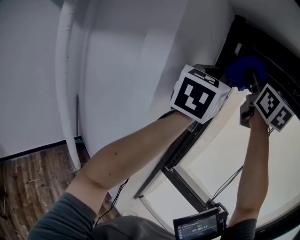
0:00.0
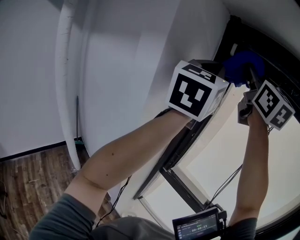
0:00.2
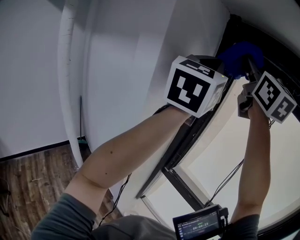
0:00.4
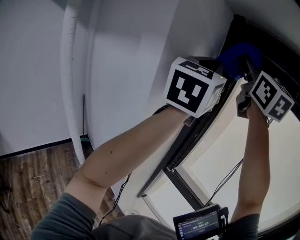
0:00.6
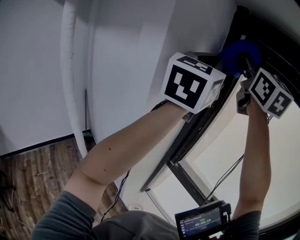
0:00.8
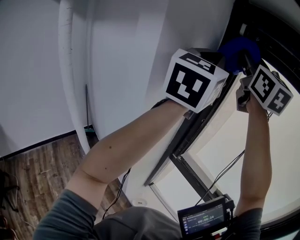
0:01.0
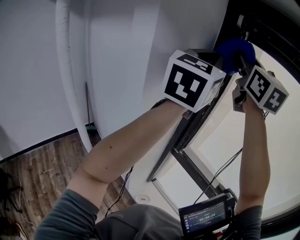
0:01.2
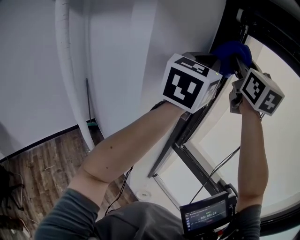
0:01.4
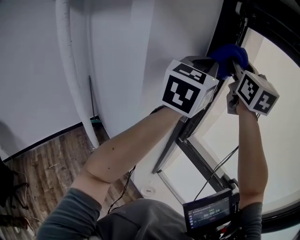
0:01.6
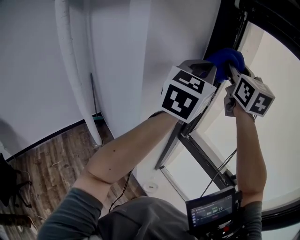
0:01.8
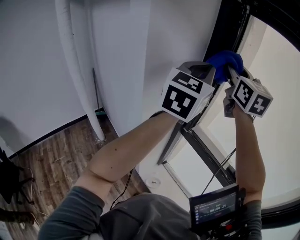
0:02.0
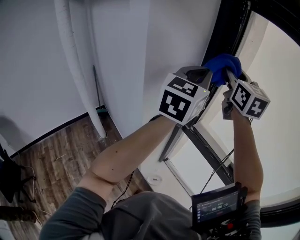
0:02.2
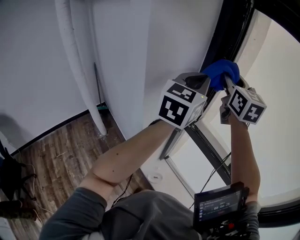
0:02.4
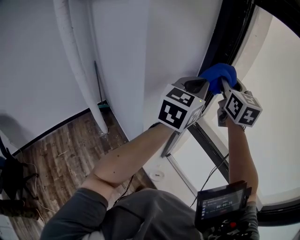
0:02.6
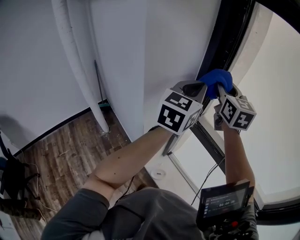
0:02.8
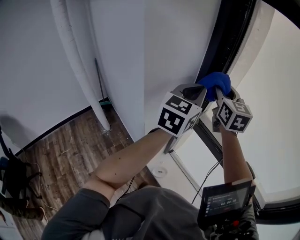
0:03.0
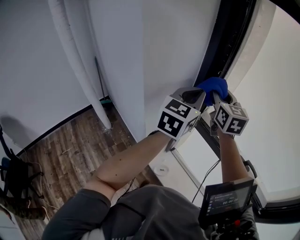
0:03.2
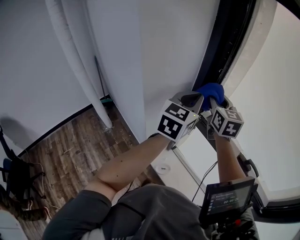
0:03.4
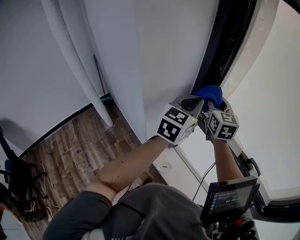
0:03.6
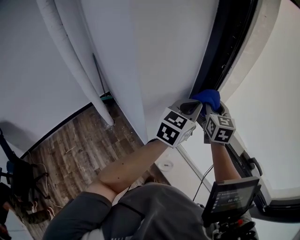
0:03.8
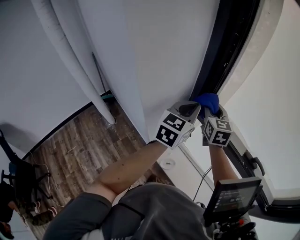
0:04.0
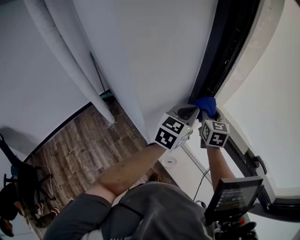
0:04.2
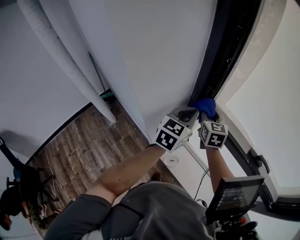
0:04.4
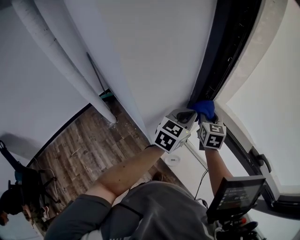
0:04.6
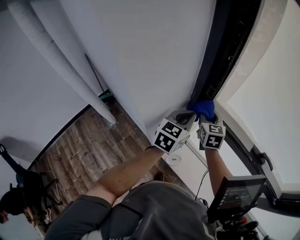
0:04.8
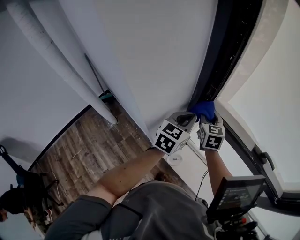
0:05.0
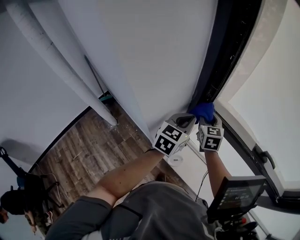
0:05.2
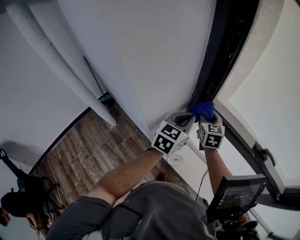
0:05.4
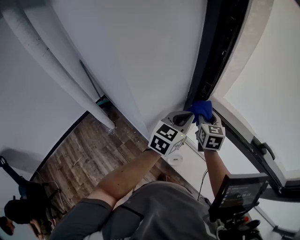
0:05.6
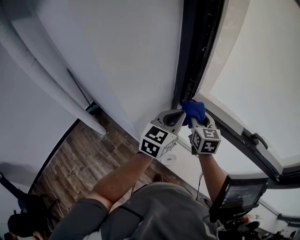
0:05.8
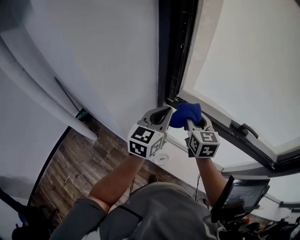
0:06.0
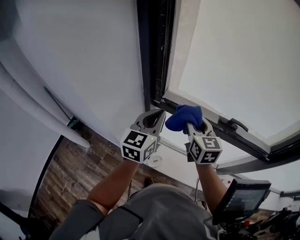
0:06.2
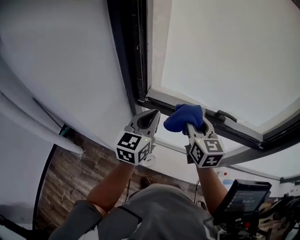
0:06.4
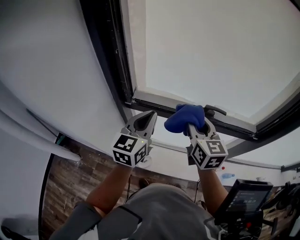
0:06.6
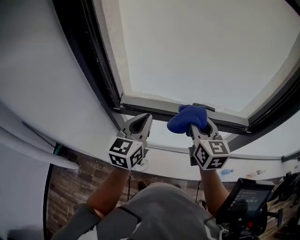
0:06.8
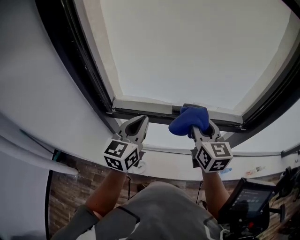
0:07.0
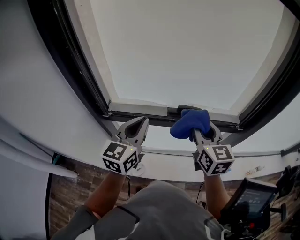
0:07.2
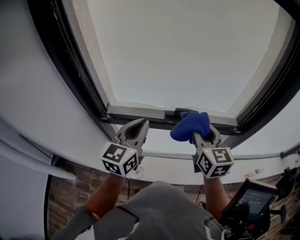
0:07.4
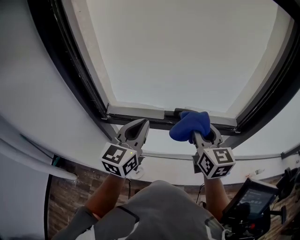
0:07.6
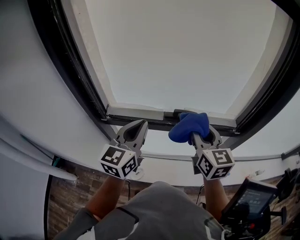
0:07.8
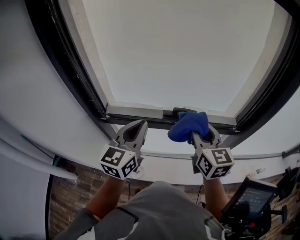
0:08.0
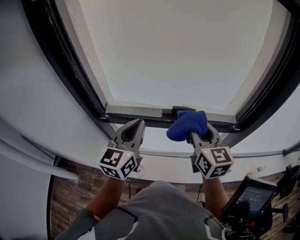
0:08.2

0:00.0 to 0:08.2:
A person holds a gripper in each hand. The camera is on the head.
0:00.0 to 0:01.6: The two grippers go about 10 cm downward.
0:01.6 to 0:03.2: Both grippers move downward, some 25 cm. The right gripper changes its angle by some 20 degrees.
0:03.2 to 0:05.0: Both grippers travel together downward, some 25 cm. The right gripper changes its angle by about 20 degrees.
0:05.0 to 0:06.6: The left gripper is displaced to the right and upward by some 20 cm. The right gripper goes roughly 35 cm to the right, backward and upward, and turns by approximately 30 degrees.
0:06.6 to 0:08.2: The two grippers go some 15 cm to the right.

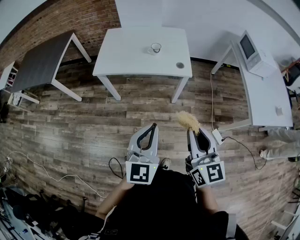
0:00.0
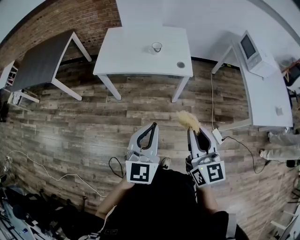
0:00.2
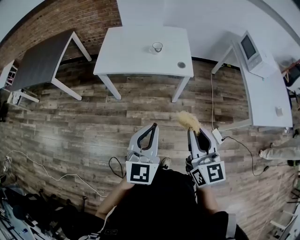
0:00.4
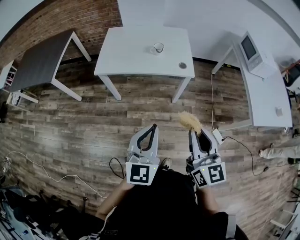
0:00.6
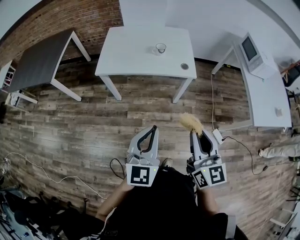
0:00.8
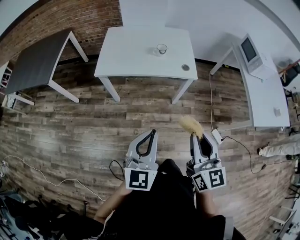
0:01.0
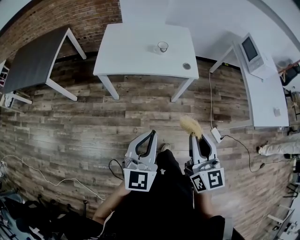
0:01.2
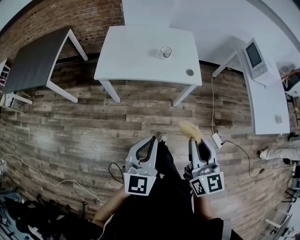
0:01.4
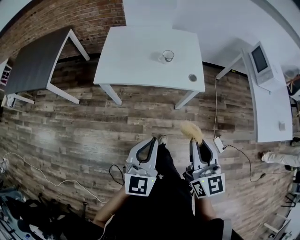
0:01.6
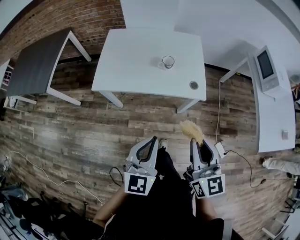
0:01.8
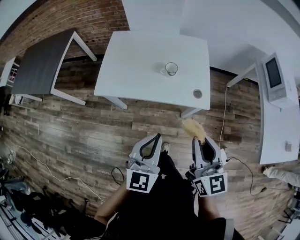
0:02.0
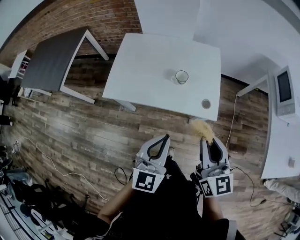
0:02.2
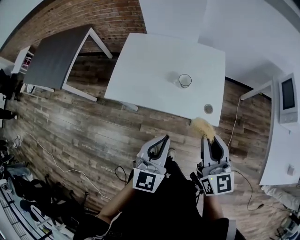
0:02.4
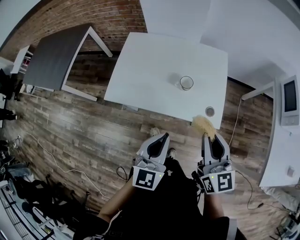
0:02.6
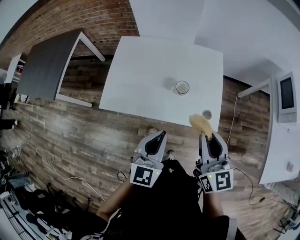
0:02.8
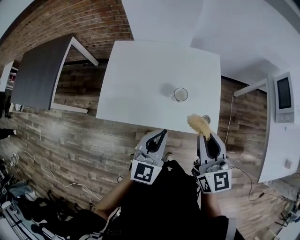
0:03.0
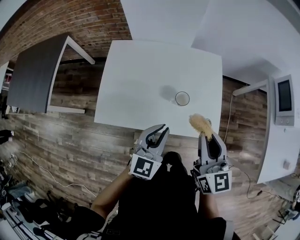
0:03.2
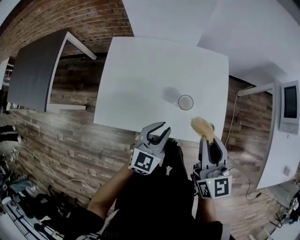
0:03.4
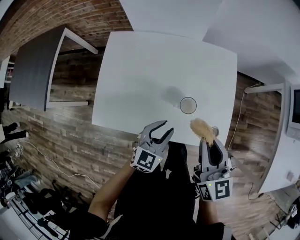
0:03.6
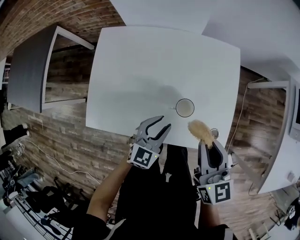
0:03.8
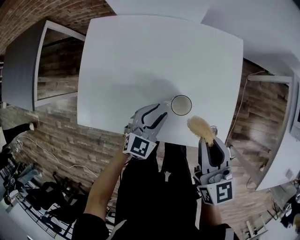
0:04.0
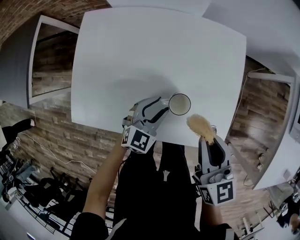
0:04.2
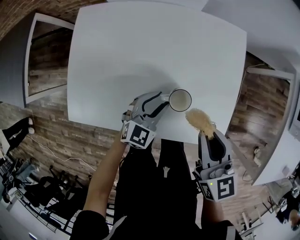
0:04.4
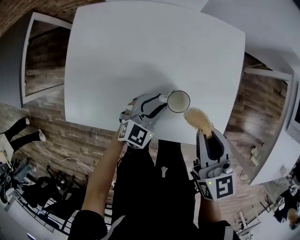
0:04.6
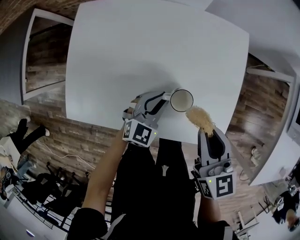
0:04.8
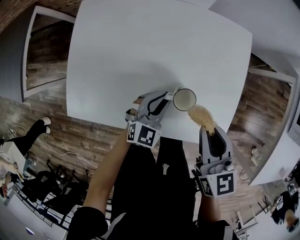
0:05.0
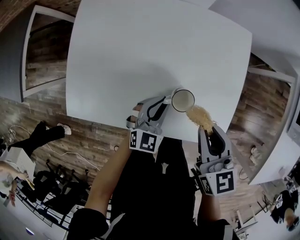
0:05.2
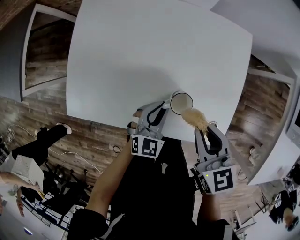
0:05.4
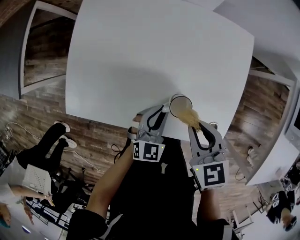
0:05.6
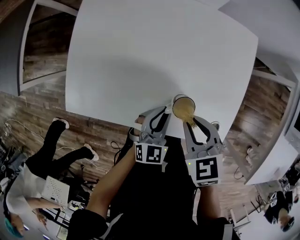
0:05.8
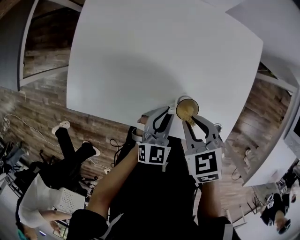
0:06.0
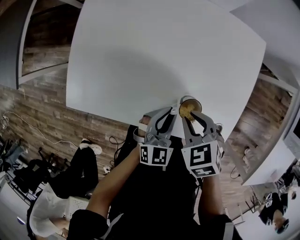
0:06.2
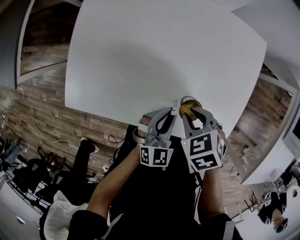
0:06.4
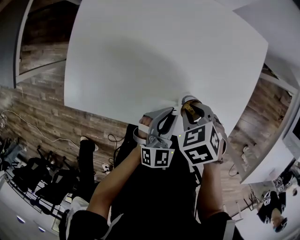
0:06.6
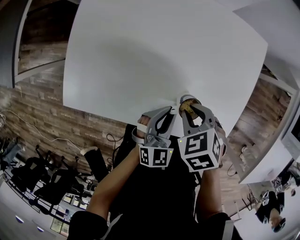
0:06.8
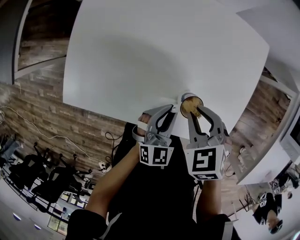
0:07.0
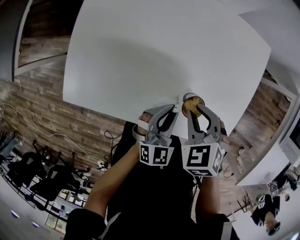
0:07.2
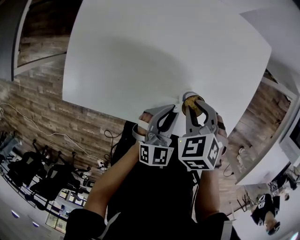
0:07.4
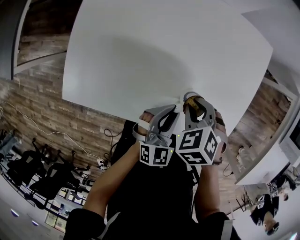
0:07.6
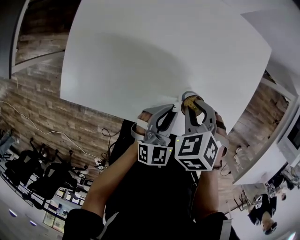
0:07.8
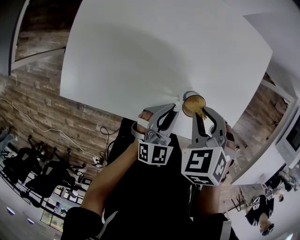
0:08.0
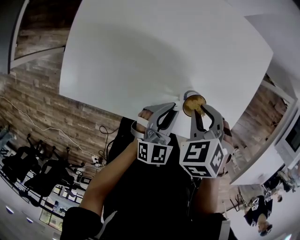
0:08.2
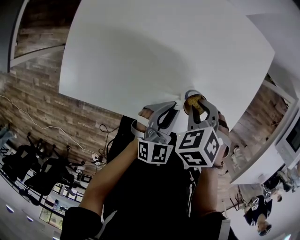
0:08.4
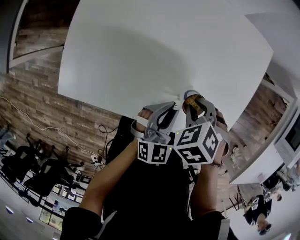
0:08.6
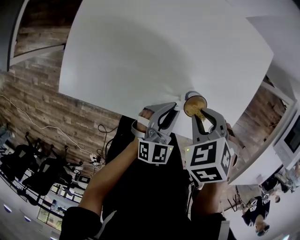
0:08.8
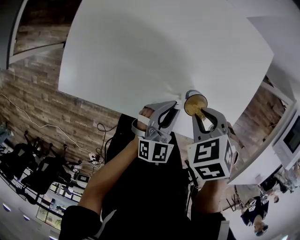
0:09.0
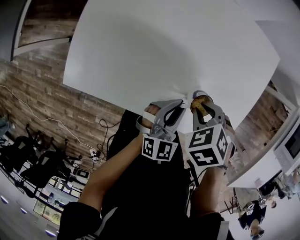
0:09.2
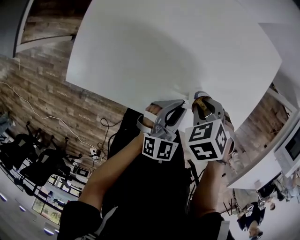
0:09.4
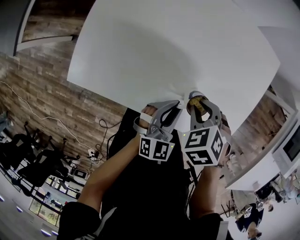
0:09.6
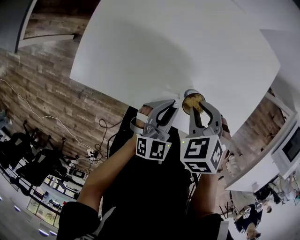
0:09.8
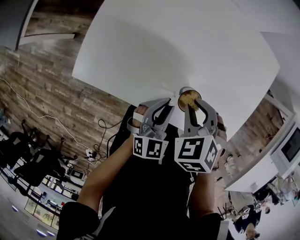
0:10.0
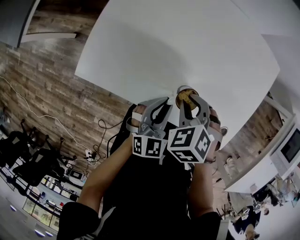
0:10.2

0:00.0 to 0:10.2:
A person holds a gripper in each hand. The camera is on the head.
0:00.0 to 0:01.4: The left gripper travels to the left by some 10 cm. Meanwhile the right gripper shifts some 10 cm to the left and forward.
0:01.4 to 0:03.0: Both grippers move forward, some 40 cm.
0:03.0 to 0:04.4: The two grippers go roughly 25 cm downward and forward. The left gripper turns by approximately 20 degrees, and opens.
0:04.4 to 0:05.8: The left gripper is displaced backward by roughly 5 cm, and closes its fingers. Meanwhile the right gripper goes approximately 10 cm downward and to the left, and swivels approximately 40 degrees.
0:05.8 to 0:07.2: The right gripper changes its angle by about 20 degrees.
0:08.8 to 0:10.2: The right gripper changes place by roughly 10 cm, while the left gripper ends up some 10 cm from where it was.

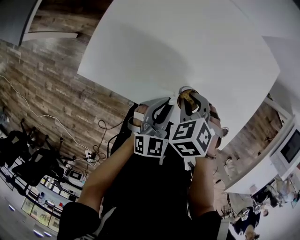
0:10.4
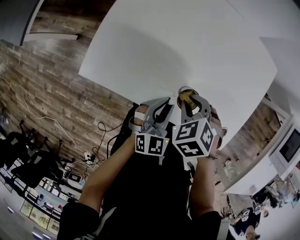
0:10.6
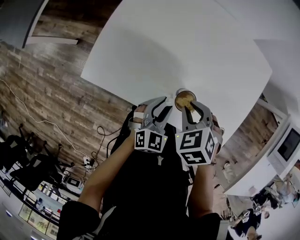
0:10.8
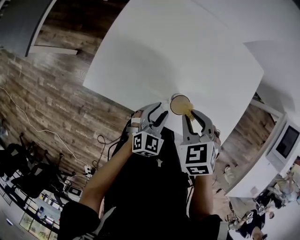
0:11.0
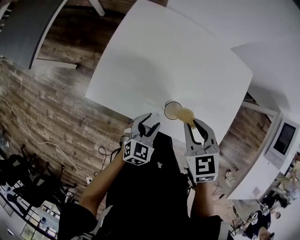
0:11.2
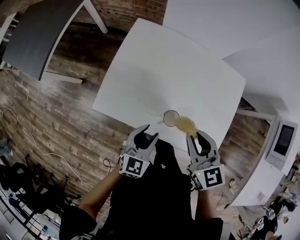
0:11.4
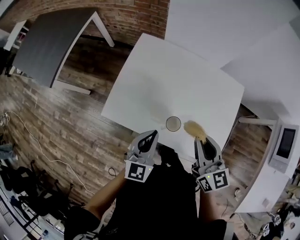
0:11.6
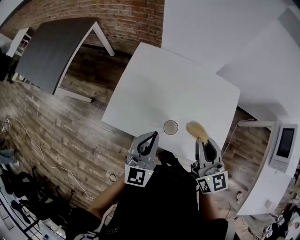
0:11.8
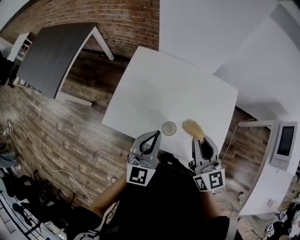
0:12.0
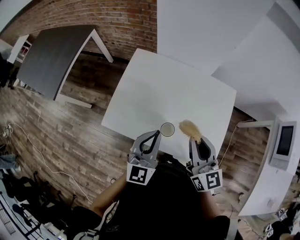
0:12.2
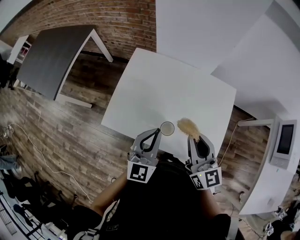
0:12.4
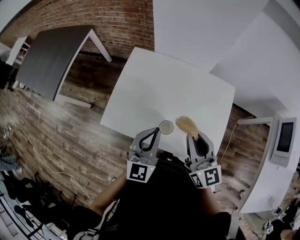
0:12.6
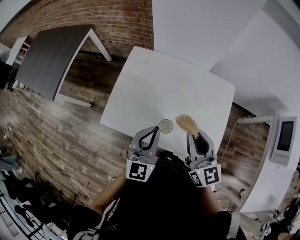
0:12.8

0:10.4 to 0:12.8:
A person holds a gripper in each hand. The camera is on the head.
0:10.4 to 0:11.6: The two grippers go some 20 cm upward. The right gripper angles its fingers upward, by some 60 degrees. Meanwhile the left gripper opens, then closes again.
0:11.6 to 0:12.8: The left gripper travels upward by some 5 cm.

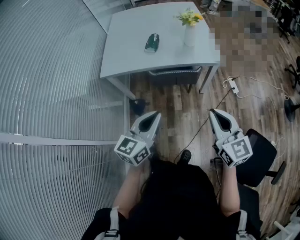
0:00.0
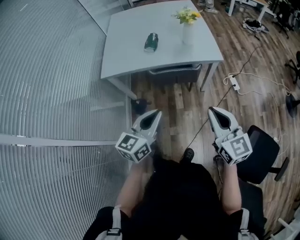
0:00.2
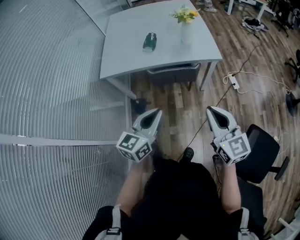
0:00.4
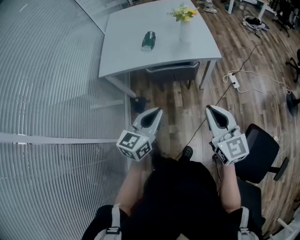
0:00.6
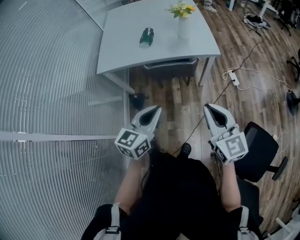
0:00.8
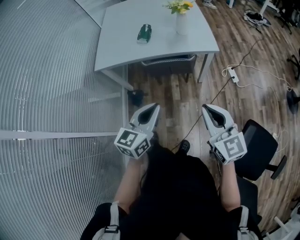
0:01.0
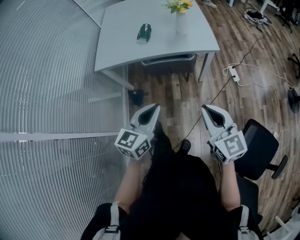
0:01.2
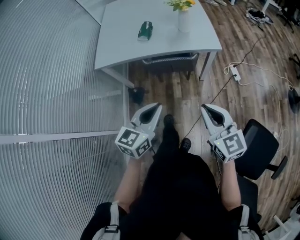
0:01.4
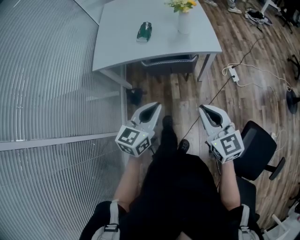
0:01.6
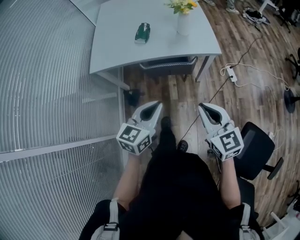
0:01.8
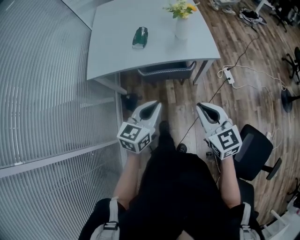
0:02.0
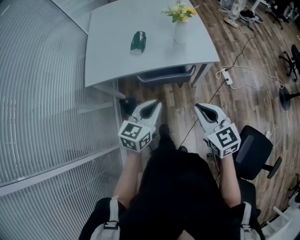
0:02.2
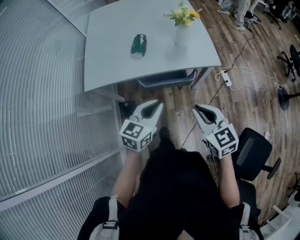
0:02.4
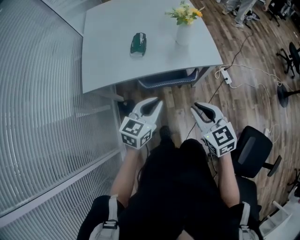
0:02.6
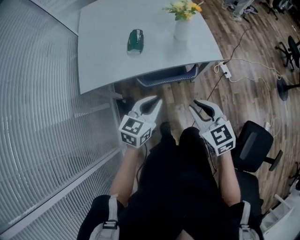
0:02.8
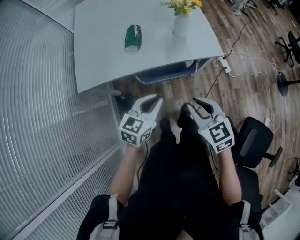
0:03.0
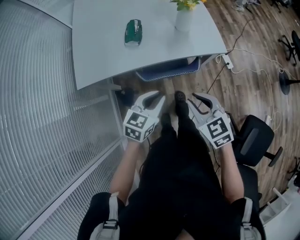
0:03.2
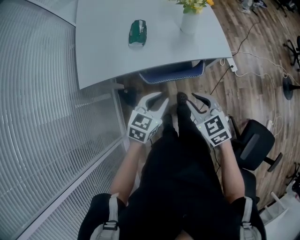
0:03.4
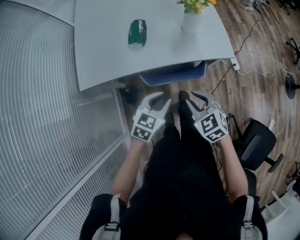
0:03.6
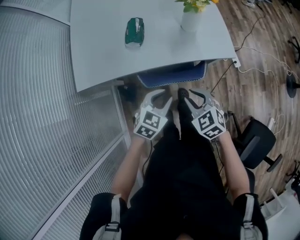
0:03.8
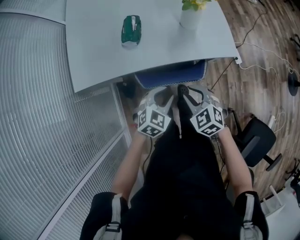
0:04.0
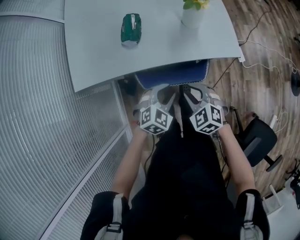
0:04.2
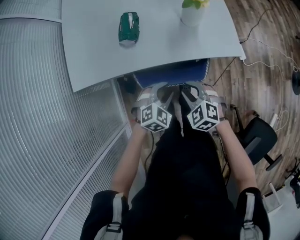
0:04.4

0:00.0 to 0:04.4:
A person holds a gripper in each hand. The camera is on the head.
0:00.0 to 0:01.4: The left gripper travels to the right by some 5 cm.
0:01.4 to 0:03.0: The left gripper travels forward by approximately 25 cm; the right gripper heads forward and to the left, covering about 25 cm, and rotates some 20 degrees.
0:03.0 to 0:04.4: The grippers both shift downward and forward by roughly 20 cm. The right gripper swivels approximately 30 degrees. The left gripper turns by roughly 40 degrees, and opens its fingers.
